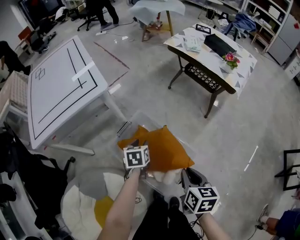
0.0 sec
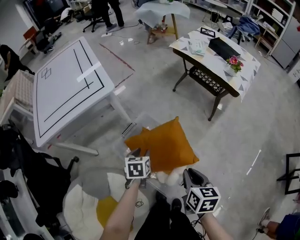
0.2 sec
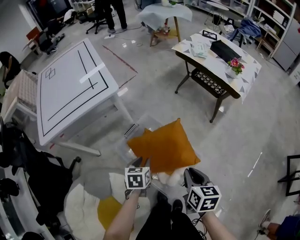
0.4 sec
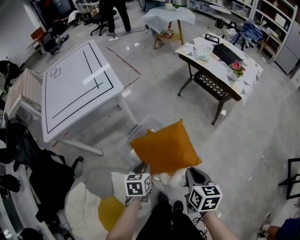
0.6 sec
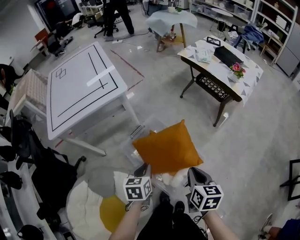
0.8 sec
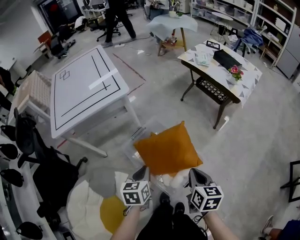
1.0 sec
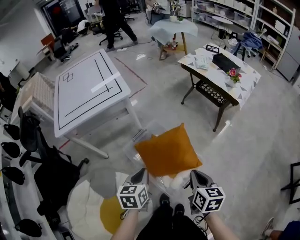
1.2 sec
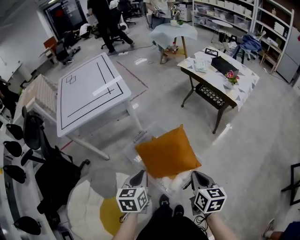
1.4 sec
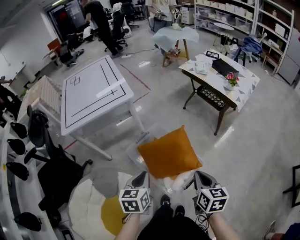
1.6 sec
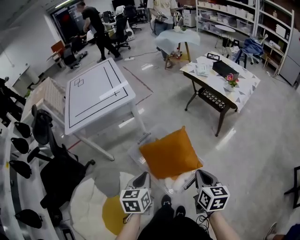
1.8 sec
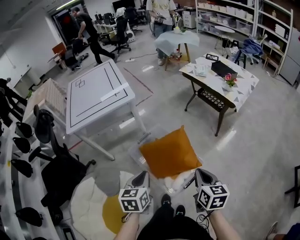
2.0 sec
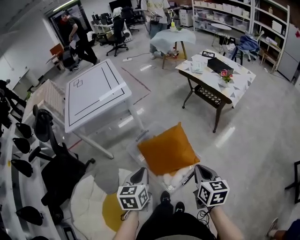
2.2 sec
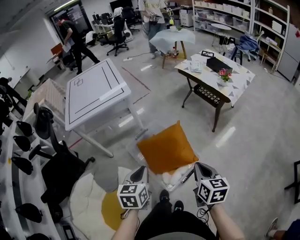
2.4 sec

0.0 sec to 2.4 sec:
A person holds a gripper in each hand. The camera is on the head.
0.0 sec to 1.2 sec: The left gripper moves backward and upward, some 25 cm, and closes. The right gripper heads backward and upward, covering about 10 cm.
1.2 sec to 2.4 sec: The right gripper heads backward, to the right and upward, covering approximately 10 cm. The left gripper goes some 15 cm backward and upward.

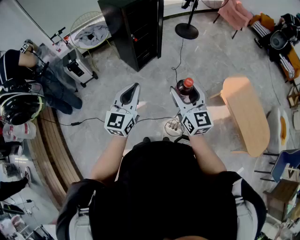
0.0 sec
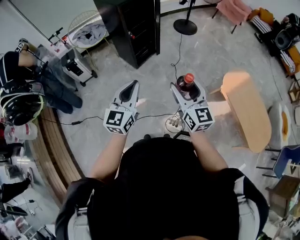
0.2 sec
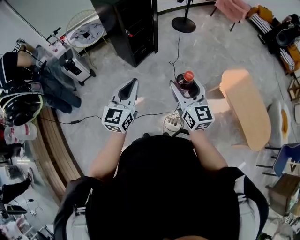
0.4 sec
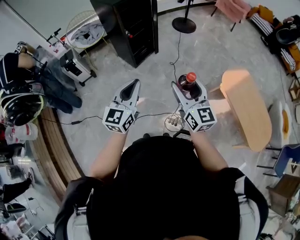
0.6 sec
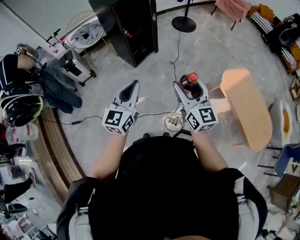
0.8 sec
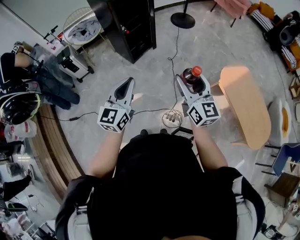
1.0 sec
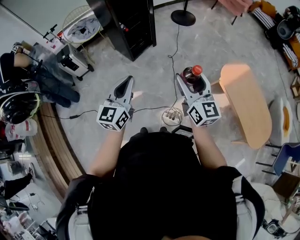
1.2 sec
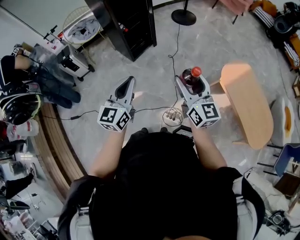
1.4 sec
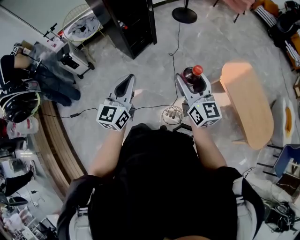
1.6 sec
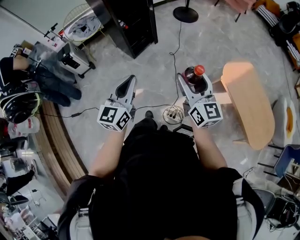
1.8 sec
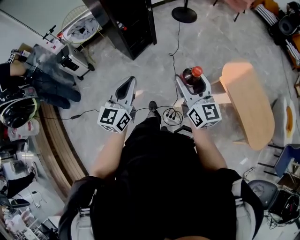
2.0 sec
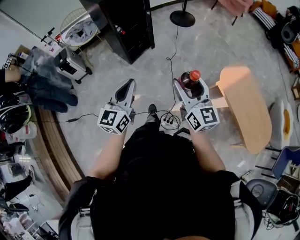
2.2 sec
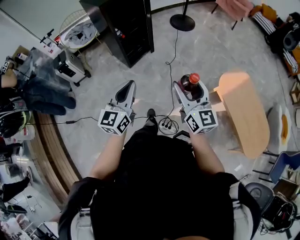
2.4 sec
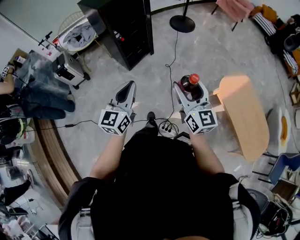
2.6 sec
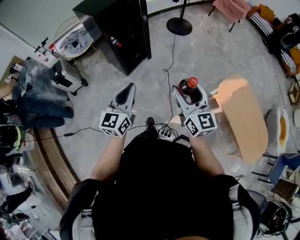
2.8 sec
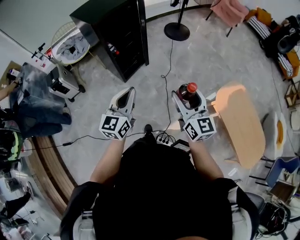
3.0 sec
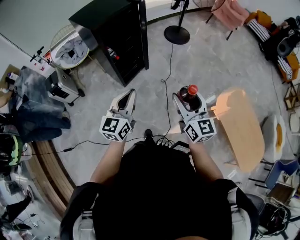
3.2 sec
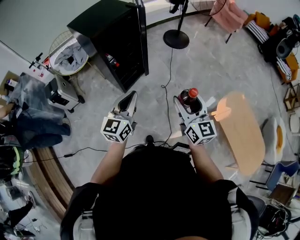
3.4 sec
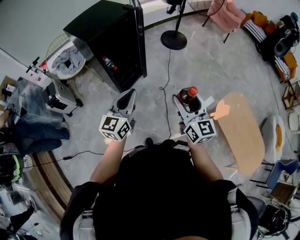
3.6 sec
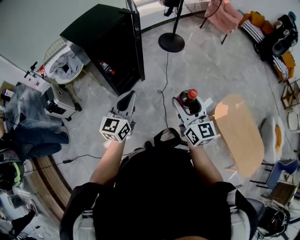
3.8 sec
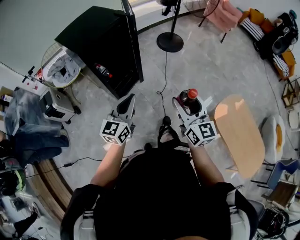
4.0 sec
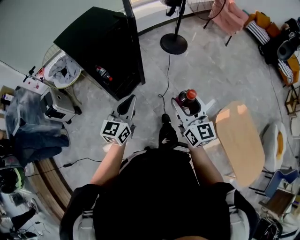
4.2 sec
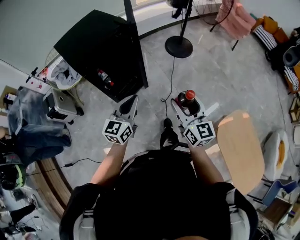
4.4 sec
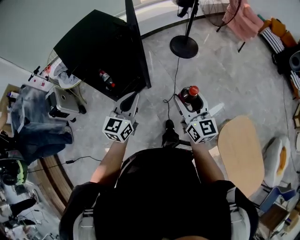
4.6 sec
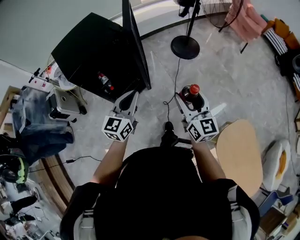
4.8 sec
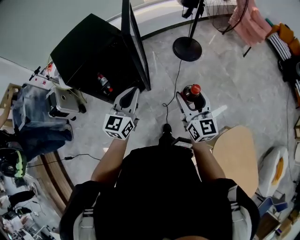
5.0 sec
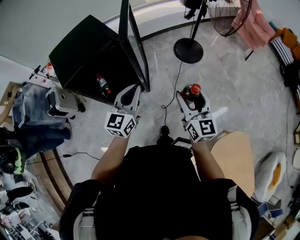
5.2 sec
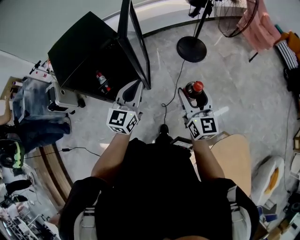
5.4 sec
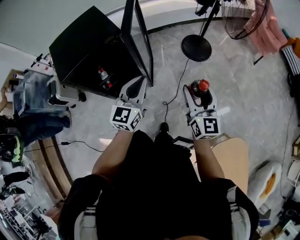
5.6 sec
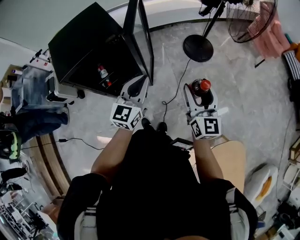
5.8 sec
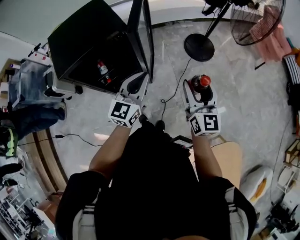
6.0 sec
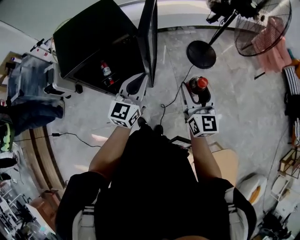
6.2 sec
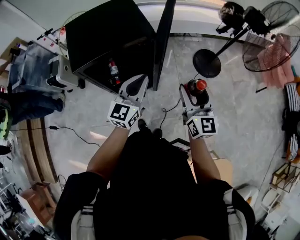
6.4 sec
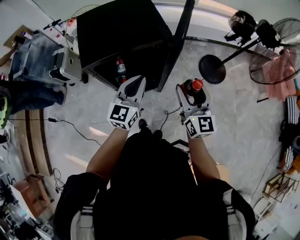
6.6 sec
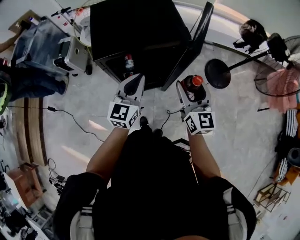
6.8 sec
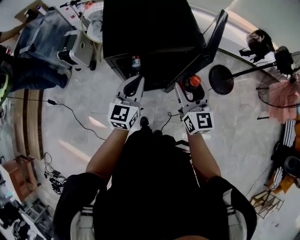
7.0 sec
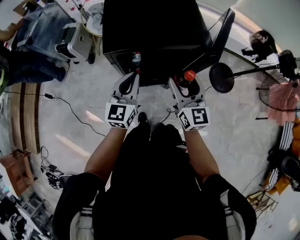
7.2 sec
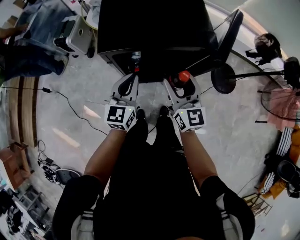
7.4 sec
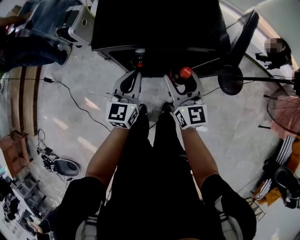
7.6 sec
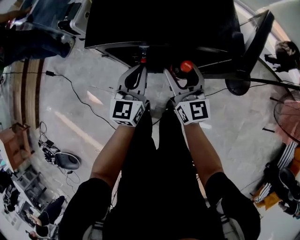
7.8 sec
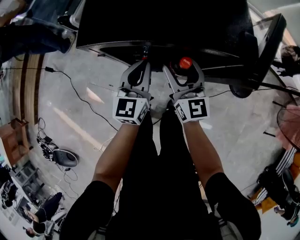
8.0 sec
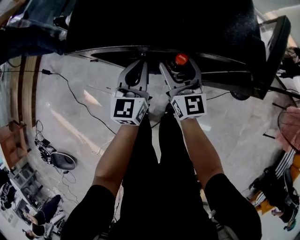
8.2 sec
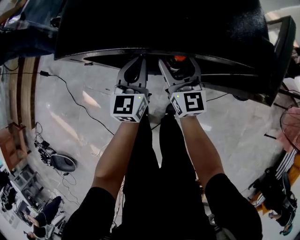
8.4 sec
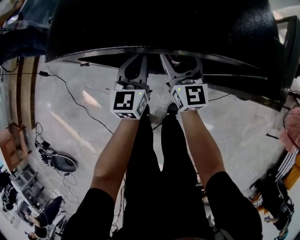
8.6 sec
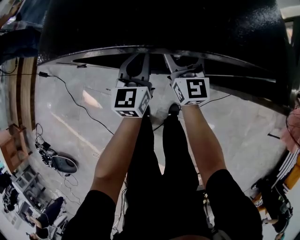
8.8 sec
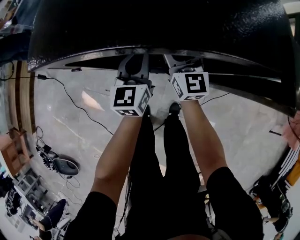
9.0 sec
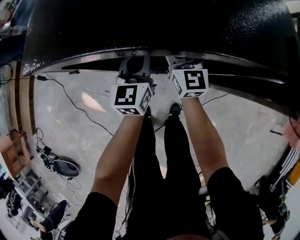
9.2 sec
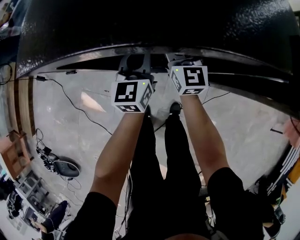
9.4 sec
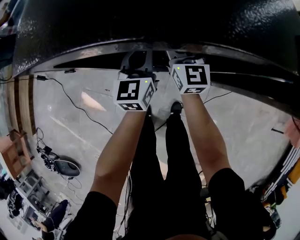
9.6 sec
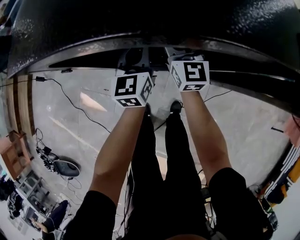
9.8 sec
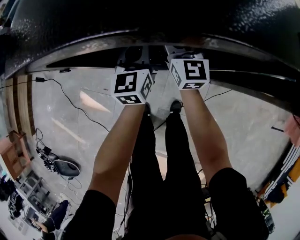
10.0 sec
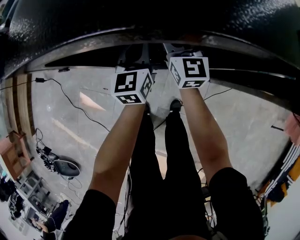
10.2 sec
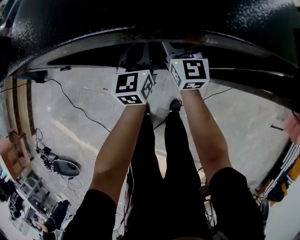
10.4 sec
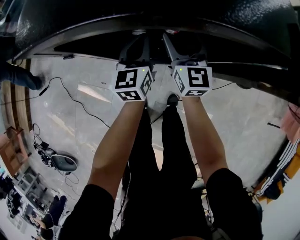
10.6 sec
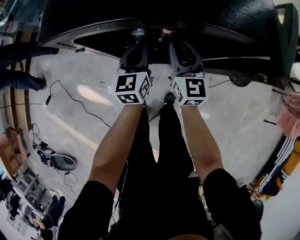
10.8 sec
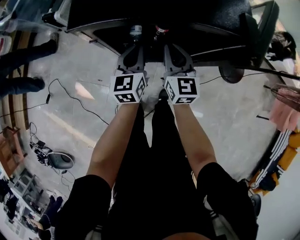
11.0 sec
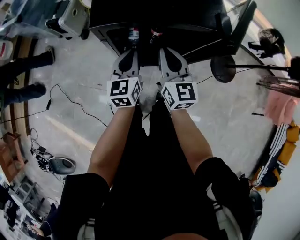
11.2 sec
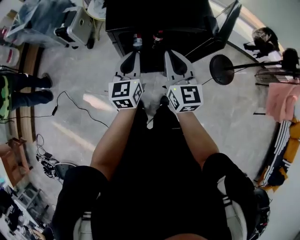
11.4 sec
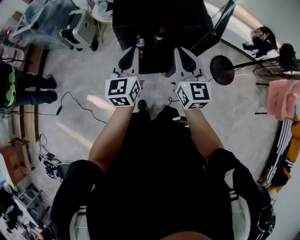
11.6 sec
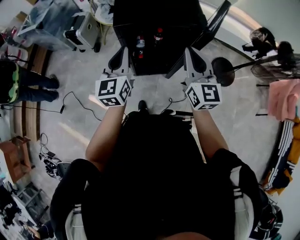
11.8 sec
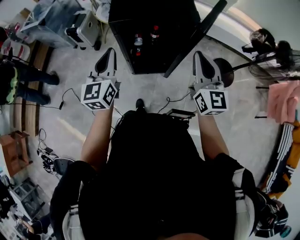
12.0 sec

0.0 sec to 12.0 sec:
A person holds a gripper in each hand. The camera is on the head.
0.0 sec to 1.6 sec: The grippers both shift to the right by about 10 cm.
1.6 sec to 3.0 sec: The grippers both shift forward by some 20 cm.
3.0 sec to 4.4 sec: The two grippers go about 30 cm forward.
4.4 sec to 6.0 sec: The two grippers go roughly 30 cm forward.
6.0 sec to 7.6 sec: The left gripper moves approximately 35 cm, and swivels some 40 degrees. Meanwhile the right gripper moves some 40 cm, and swivels about 40 degrees.
7.6 sec to 9.0 sec: Both grippers move downward and forward, about 20 cm.
9.0 sec to 10.4 sec: The left gripper ends up approximately 5 cm from where it was.
10.4 sec to 12.0 sec: The grippers both shift upward and backward by roughly 50 cm. The right gripper closes its fingers.

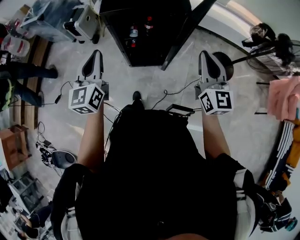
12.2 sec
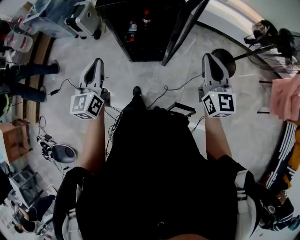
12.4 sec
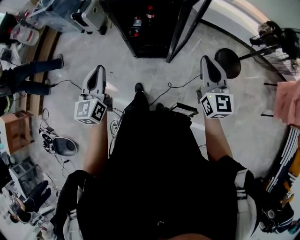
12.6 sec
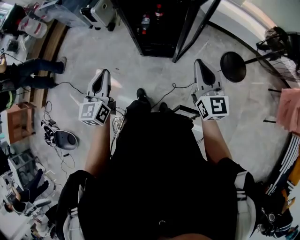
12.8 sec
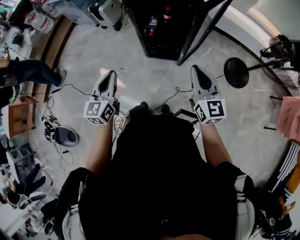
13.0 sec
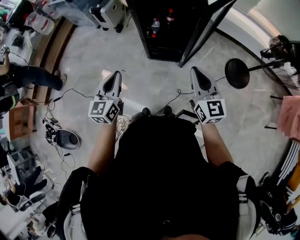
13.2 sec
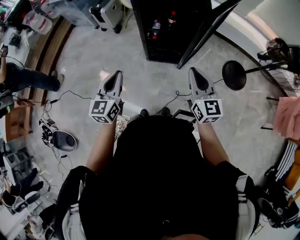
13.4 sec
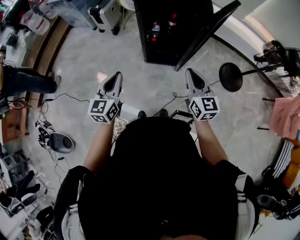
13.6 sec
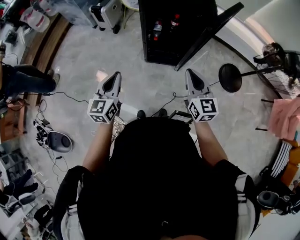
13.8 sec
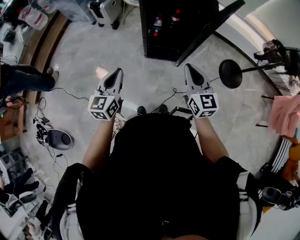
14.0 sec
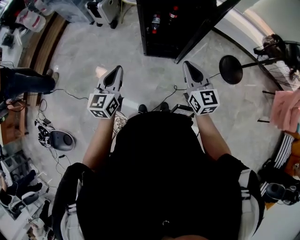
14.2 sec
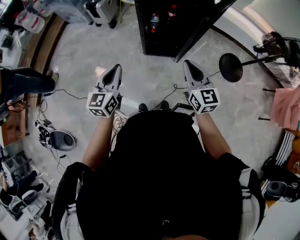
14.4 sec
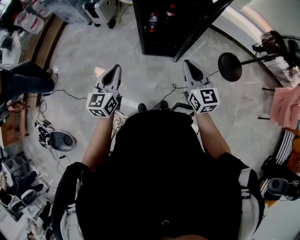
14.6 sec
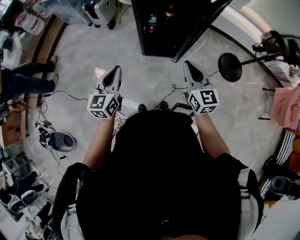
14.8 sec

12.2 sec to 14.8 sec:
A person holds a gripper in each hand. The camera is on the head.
12.2 sec to 13.4 sec: The left gripper is displaced backward and downward by approximately 20 cm, while the right gripper moves backward, to the left and downward, some 15 cm.
13.4 sec to 14.8 sec: The grippers make only small movements.

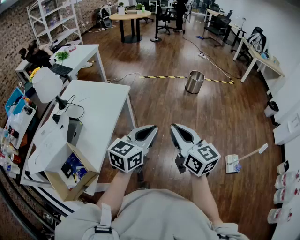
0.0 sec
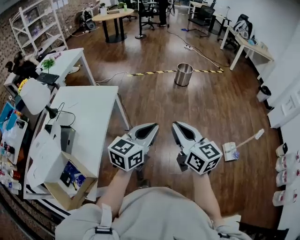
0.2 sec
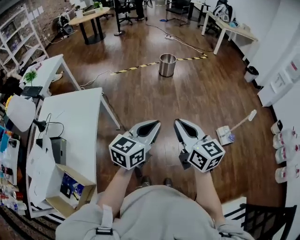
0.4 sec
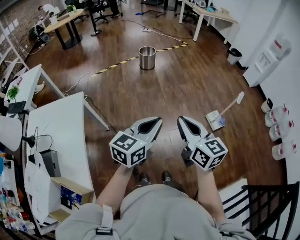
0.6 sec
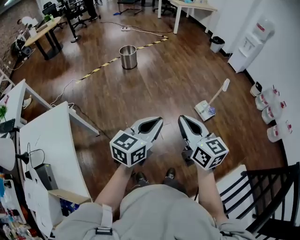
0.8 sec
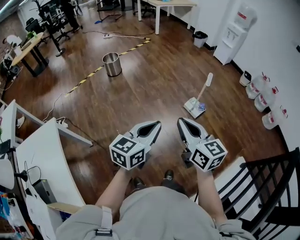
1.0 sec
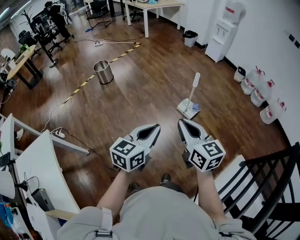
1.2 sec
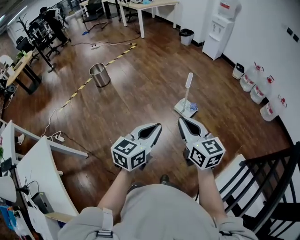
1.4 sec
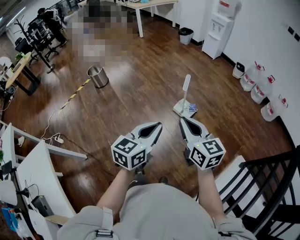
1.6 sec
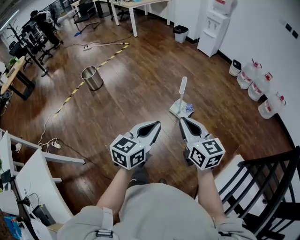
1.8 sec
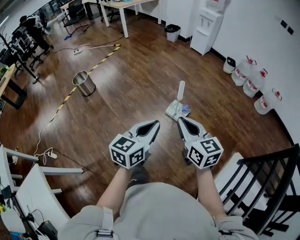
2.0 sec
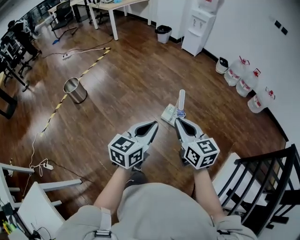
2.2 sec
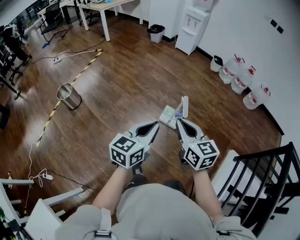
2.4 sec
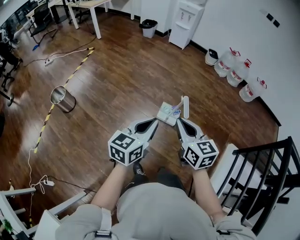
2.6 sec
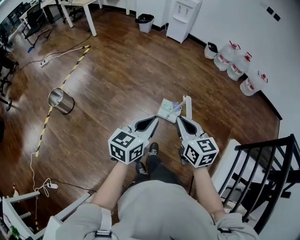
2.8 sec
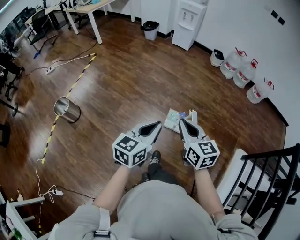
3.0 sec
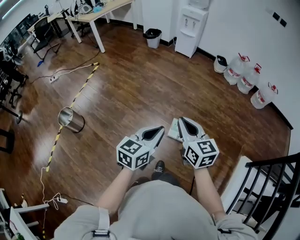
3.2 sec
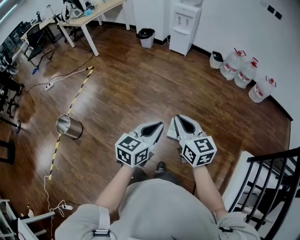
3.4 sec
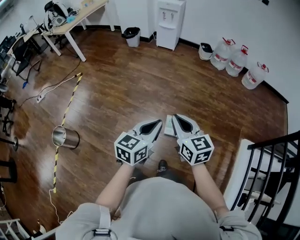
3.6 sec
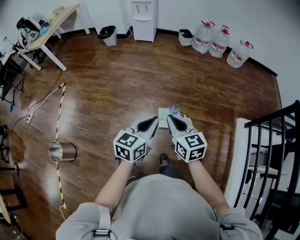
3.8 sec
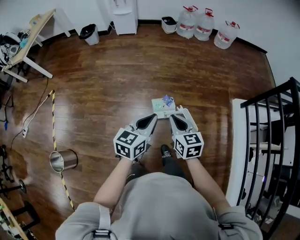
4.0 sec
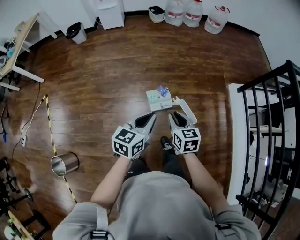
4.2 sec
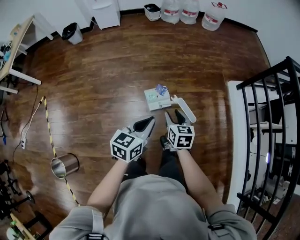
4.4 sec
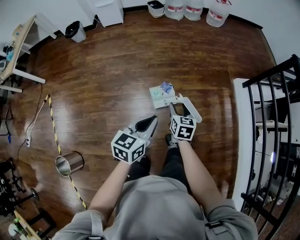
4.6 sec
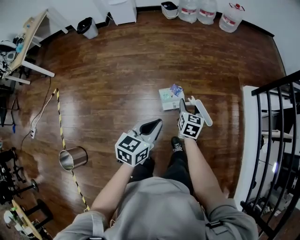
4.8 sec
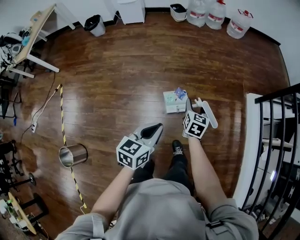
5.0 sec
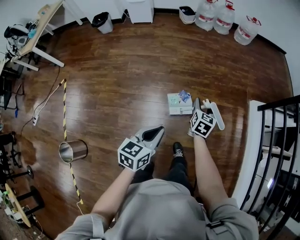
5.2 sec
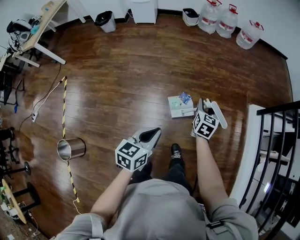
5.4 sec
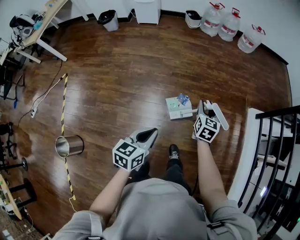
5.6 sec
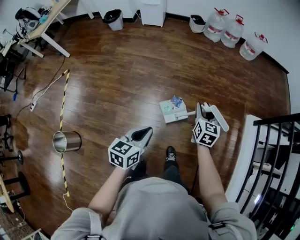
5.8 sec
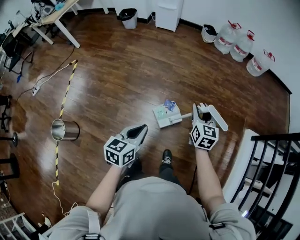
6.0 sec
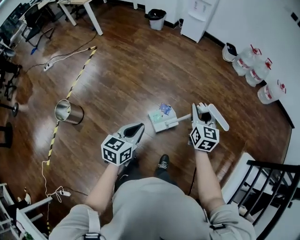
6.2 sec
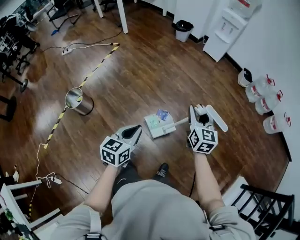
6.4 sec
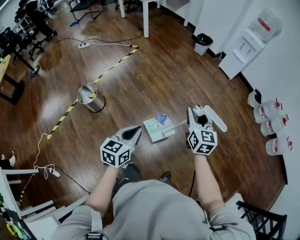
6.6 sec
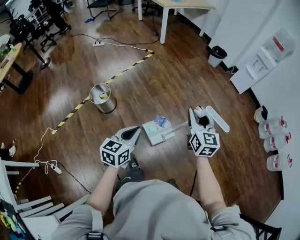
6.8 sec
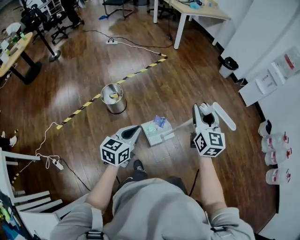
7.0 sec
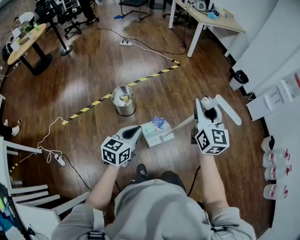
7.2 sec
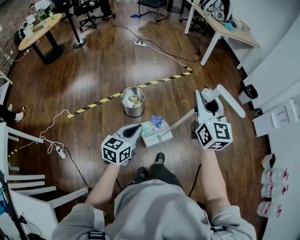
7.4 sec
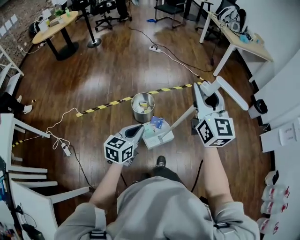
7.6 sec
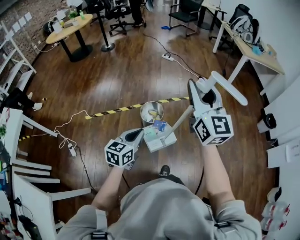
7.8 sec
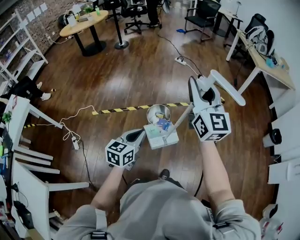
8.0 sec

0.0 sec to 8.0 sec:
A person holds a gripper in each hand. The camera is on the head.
0.0 sec to 1.6 sec: The two grippers travel together, approximately 50 cm. The left gripper swivels roughly 50 degrees. The right gripper changes its angle by some 50 degrees.
1.6 sec to 3.2 sec: Both grippers are carried forward, approximately 50 cm. The right gripper rotates roughly 20 degrees. Meanwhile the left gripper rotates about 20 degrees.
3.2 sec to 4.8 sec: The left gripper travels downward by some 10 cm, and swivels roughly 30 degrees; the right gripper heads downward, covering some 25 cm, turns by roughly 60 degrees, and opens.
4.8 sec to 6.4 sec: The right gripper moves some 35 cm, and rotates about 60 degrees; the left gripper ends up approximately 30 cm from where it was, and swivels some 50 degrees.
6.4 sec to 8.0 sec: The pair of grippers is taken roughly 70 cm. The left gripper turns by roughly 50 degrees, while the right gripper swivels some 70 degrees.
